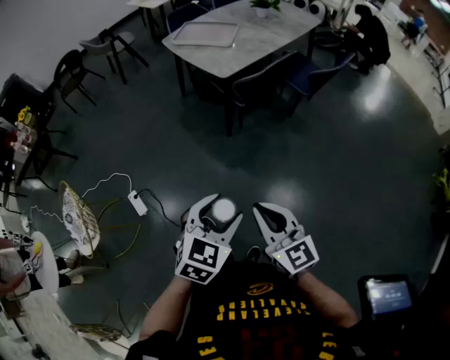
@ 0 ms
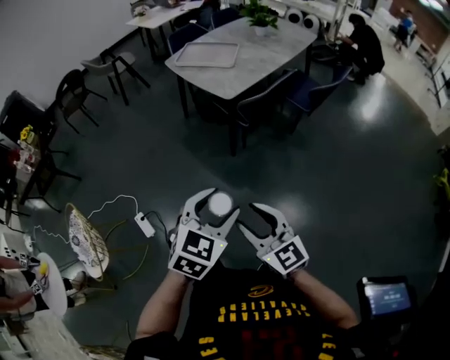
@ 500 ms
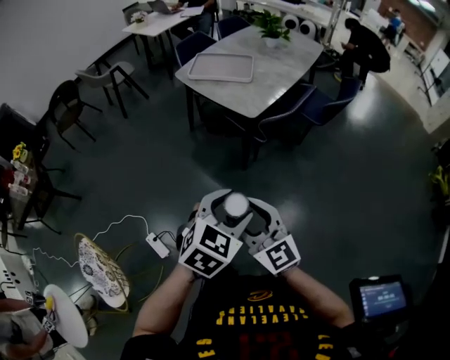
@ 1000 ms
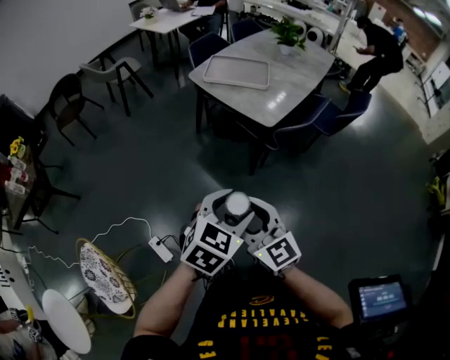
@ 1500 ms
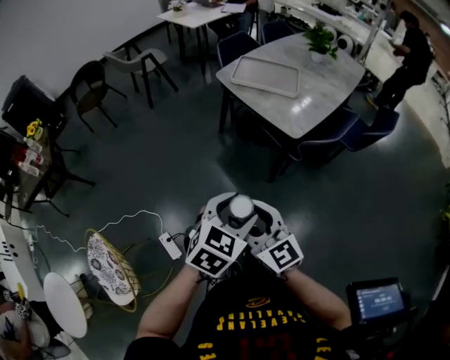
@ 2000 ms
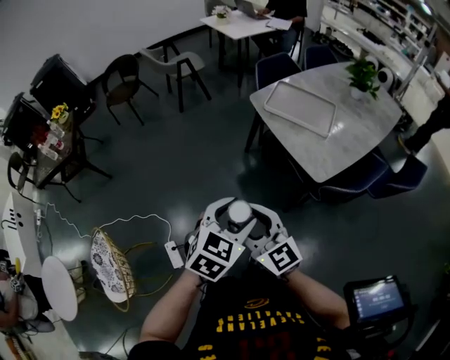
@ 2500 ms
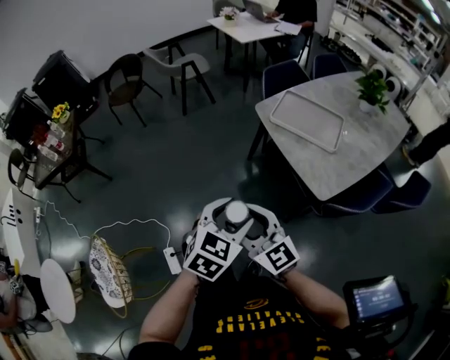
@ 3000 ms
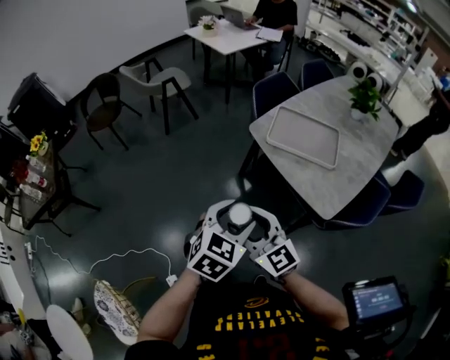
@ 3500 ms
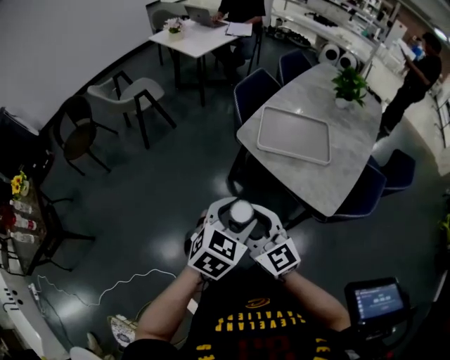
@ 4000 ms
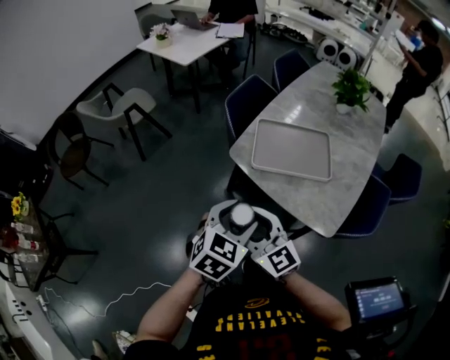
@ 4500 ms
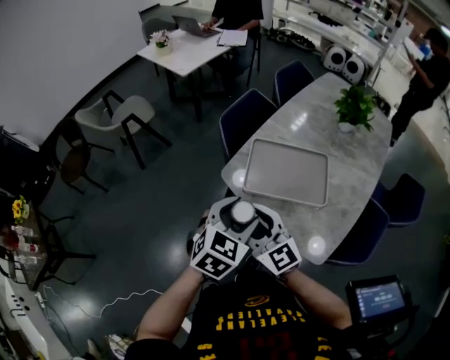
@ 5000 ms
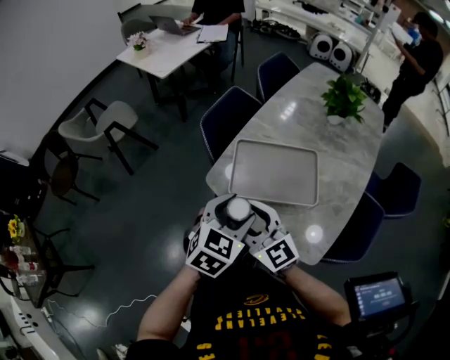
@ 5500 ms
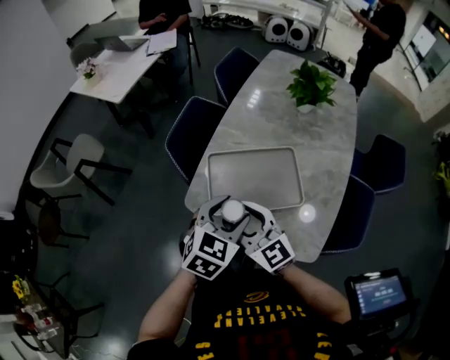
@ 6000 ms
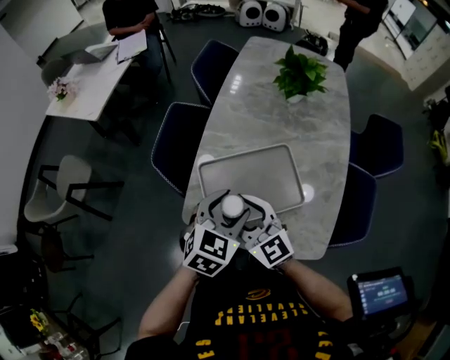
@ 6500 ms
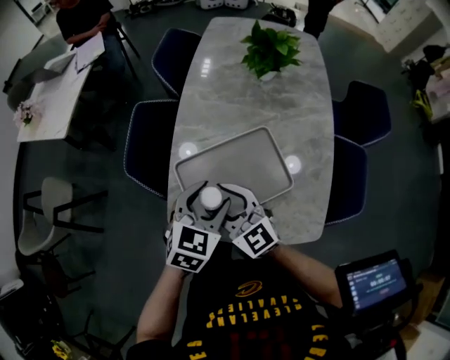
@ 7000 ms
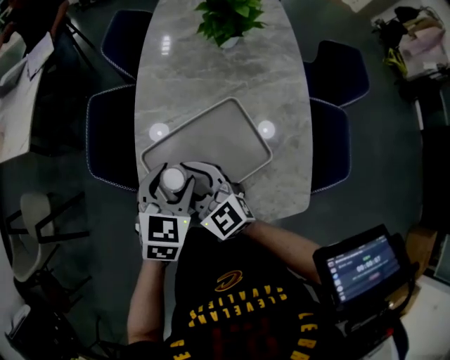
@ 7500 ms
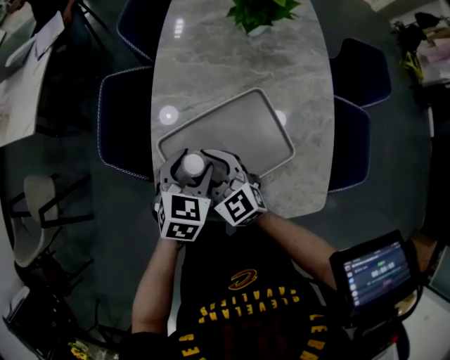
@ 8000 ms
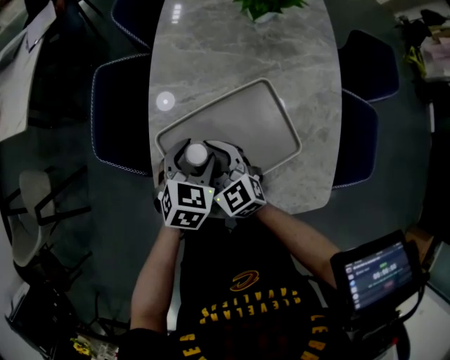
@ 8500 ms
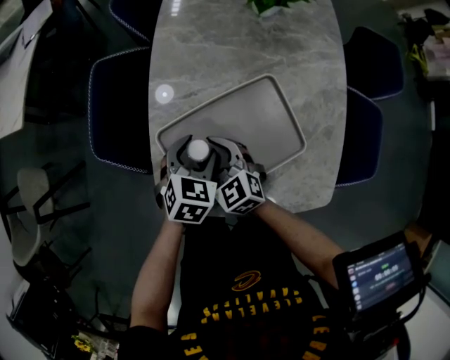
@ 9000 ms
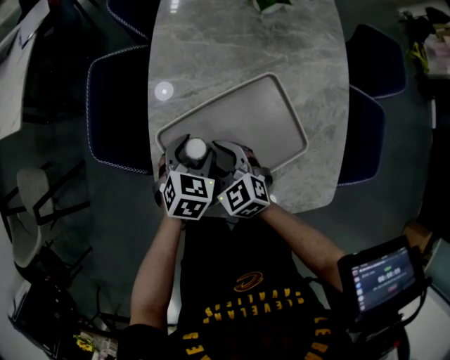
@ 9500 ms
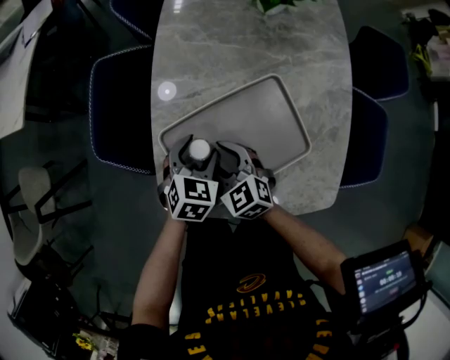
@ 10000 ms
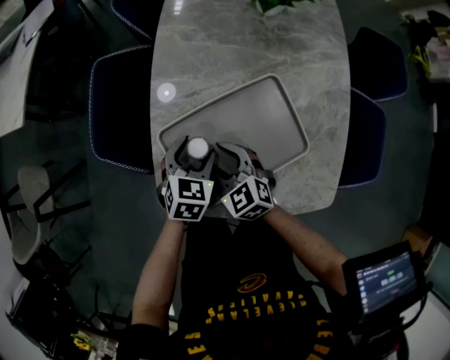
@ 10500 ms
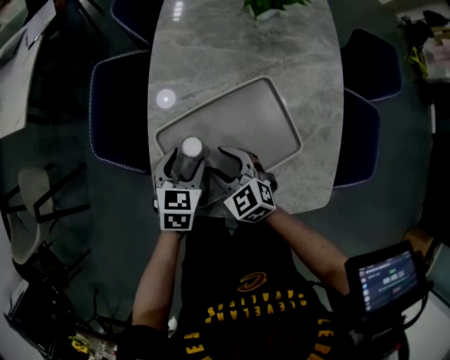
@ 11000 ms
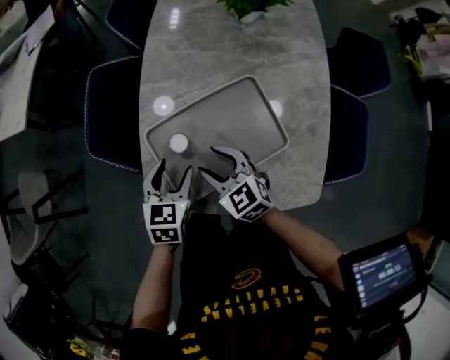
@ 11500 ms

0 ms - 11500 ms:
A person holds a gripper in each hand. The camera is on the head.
0 ms - 2000 ms: The grippers both shift to the left and forward by about 40 cm. The right gripper opens its fingers.
2000 ms - 4000 ms: Both grippers are carried forward, approximately 40 cm.
4000 ms - 6000 ms: Both grippers travel together forward and to the right, approximately 35 cm.
6000 ms - 7500 ms: Both grippers travel together forward and downward, approximately 15 cm.
7500 ms - 9500 ms: The two grippers go some 15 cm downward. The right gripper turns by approximately 20 degrees.
9500 ms - 11500 ms: The left gripper ends up some 5 cm from where it was, and swivels roughly 20 degrees; the right gripper changes place by approximately 5 cm.

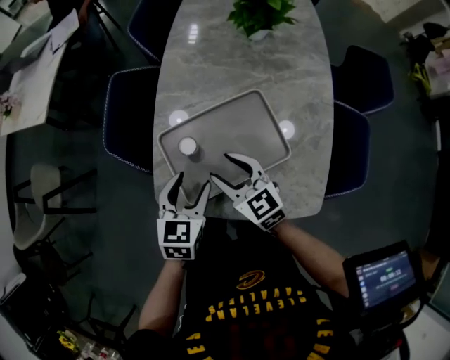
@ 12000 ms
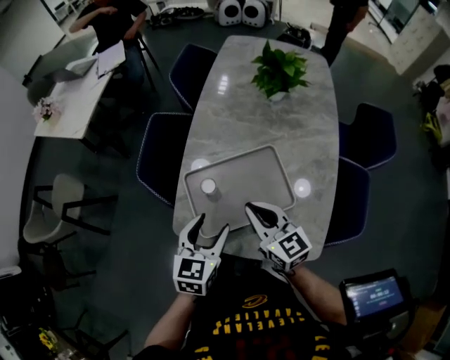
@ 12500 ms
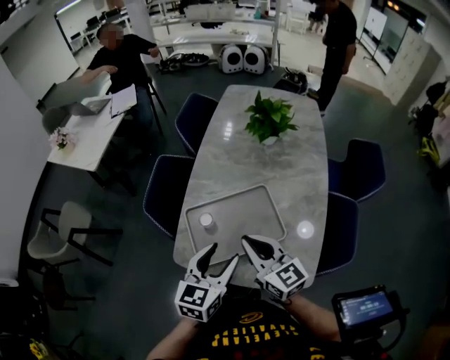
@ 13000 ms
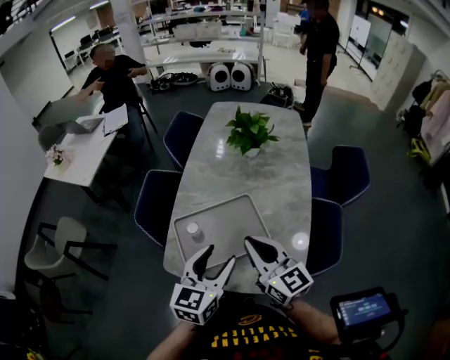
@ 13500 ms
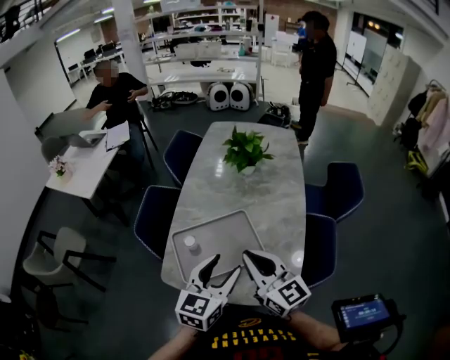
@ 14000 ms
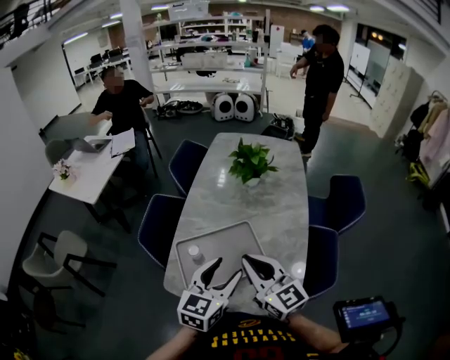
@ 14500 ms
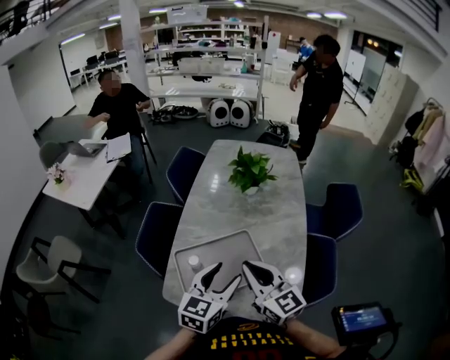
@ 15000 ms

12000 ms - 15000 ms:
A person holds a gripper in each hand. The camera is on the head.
12000 ms - 13500 ms: The grippers both shift upward and to the right by roughly 20 cm. The right gripper swivels roughly 30 degrees, and closes its fingers; the left gripper swivels about 20 degrees.
13500 ms - 15000 ms: The grippers make only small movements.

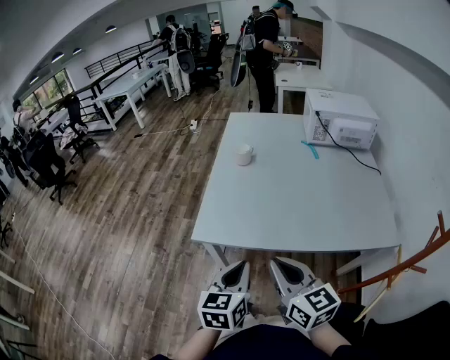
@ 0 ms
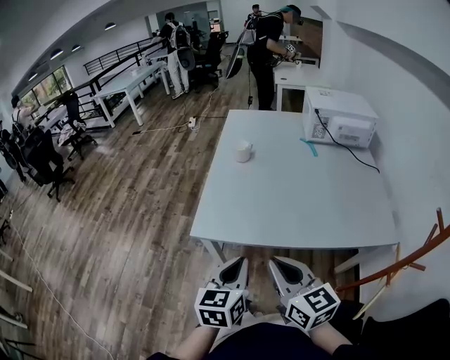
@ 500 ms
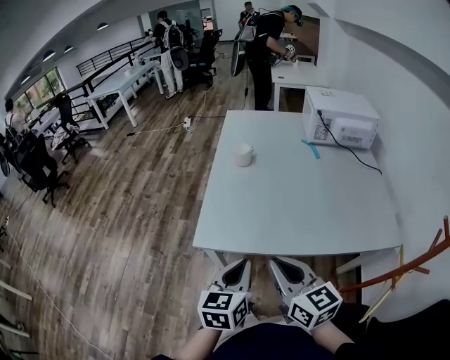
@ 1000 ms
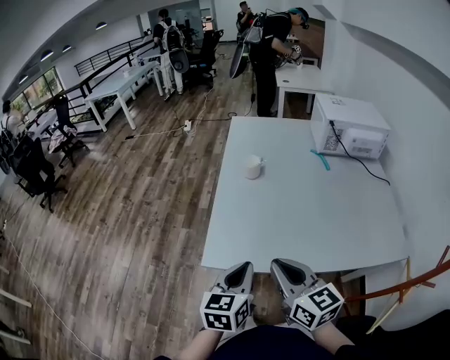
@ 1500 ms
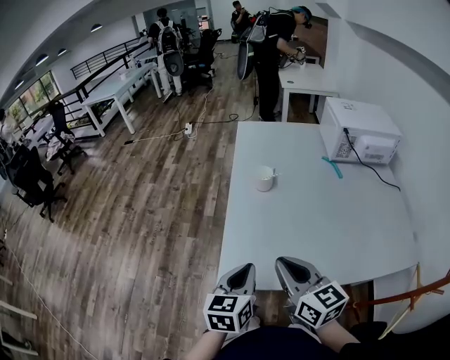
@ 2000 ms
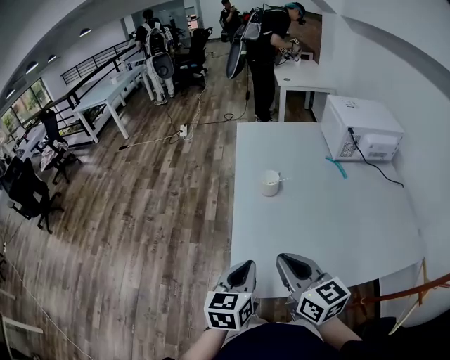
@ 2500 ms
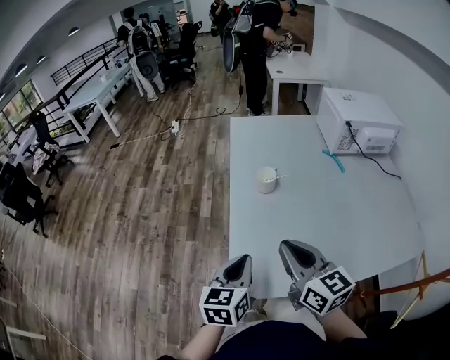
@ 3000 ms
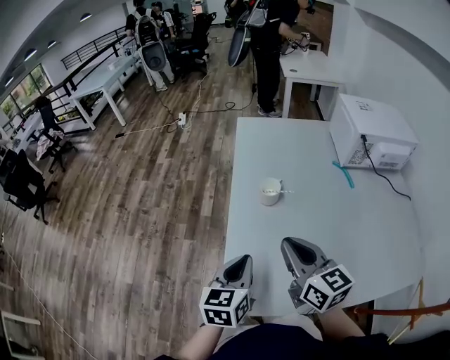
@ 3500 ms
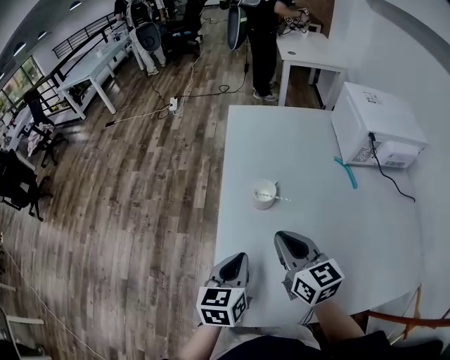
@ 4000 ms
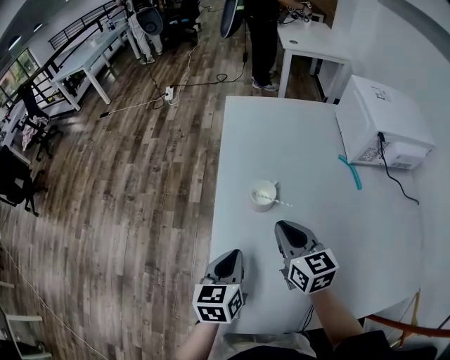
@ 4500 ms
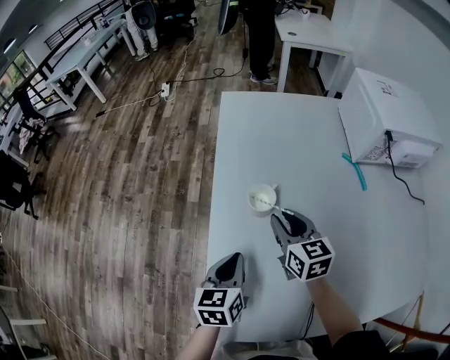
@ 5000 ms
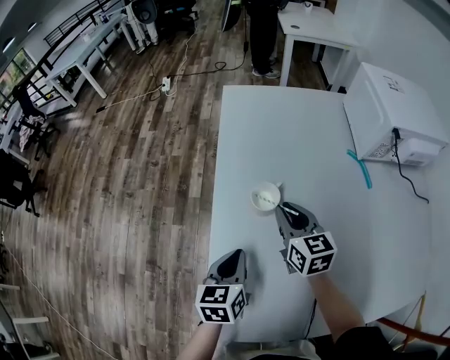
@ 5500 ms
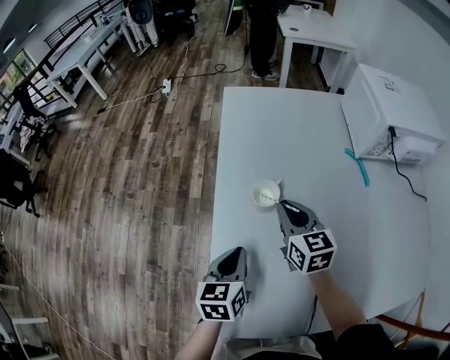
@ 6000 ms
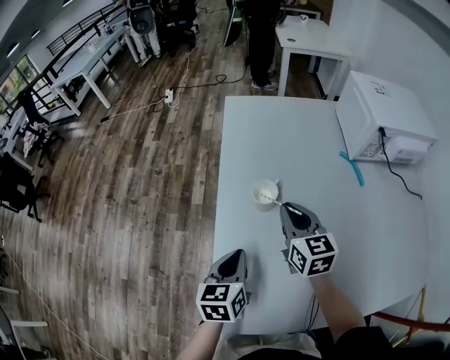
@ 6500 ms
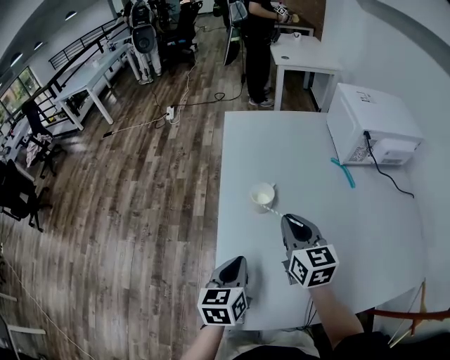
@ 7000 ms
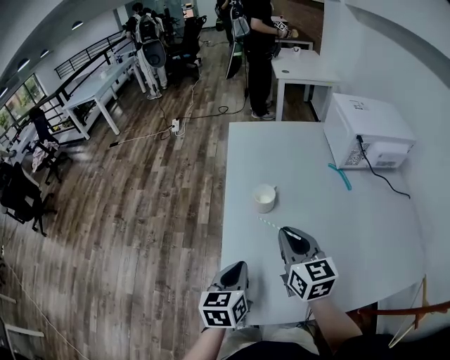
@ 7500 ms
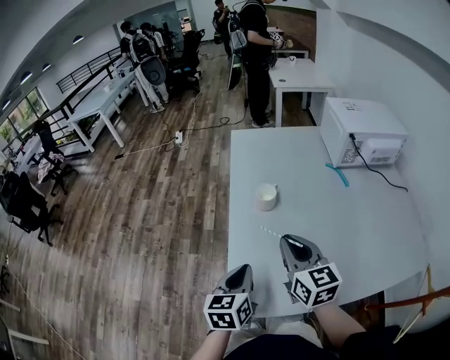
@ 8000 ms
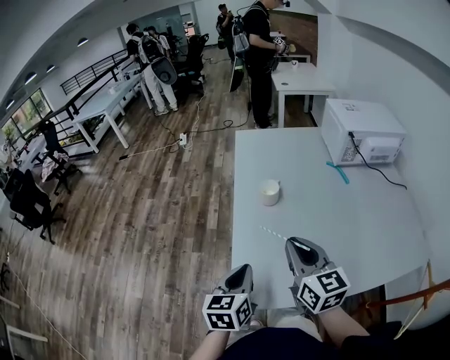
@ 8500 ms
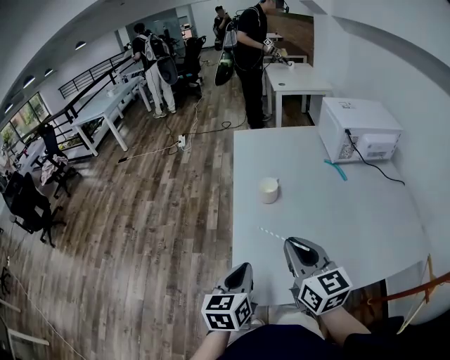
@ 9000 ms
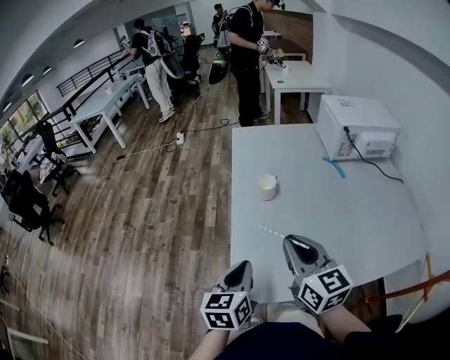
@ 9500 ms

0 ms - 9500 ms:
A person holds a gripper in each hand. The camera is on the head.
0 ms - 2000 ms: Both grippers travel together forward and to the left, about 20 cm.
2000 ms - 4000 ms: Both grippers travel together forward, some 20 cm.
4000 ms - 5500 ms: The right gripper is displaced forward and downward by some 15 cm, while the left gripper moves downward and forward, roughly 10 cm.
5500 ms - 7500 ms: The grippers both shift backward and upward by about 15 cm.
7500 ms - 9500 ms: The left gripper heads backward, covering some 10 cm. The right gripper shifts roughly 15 cm backward and upward.

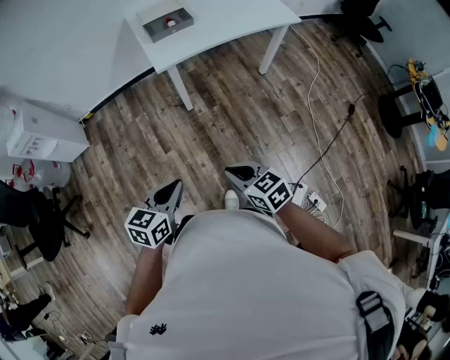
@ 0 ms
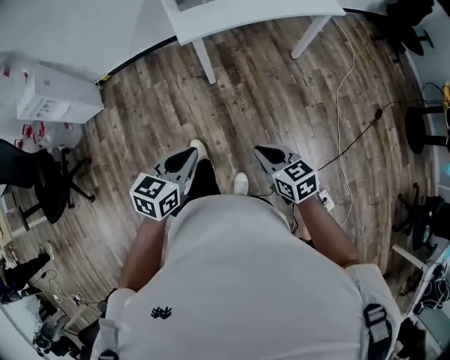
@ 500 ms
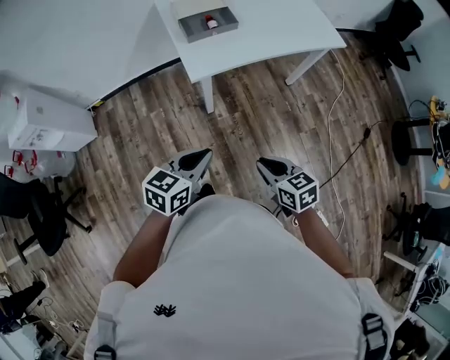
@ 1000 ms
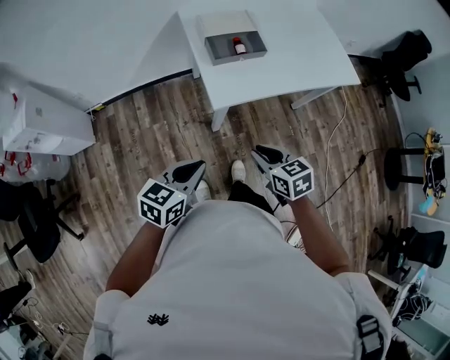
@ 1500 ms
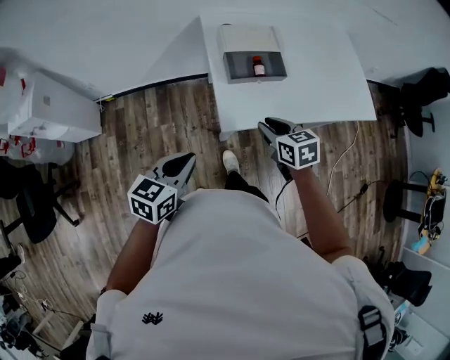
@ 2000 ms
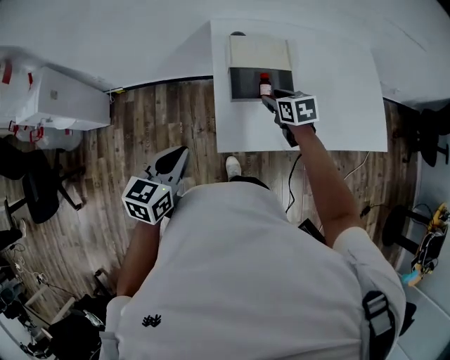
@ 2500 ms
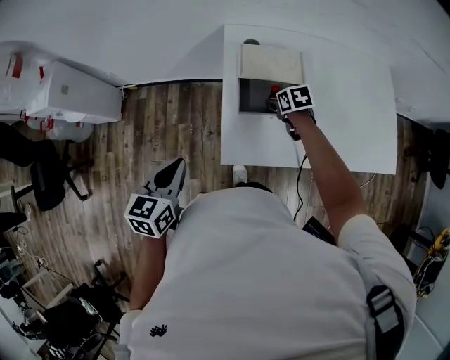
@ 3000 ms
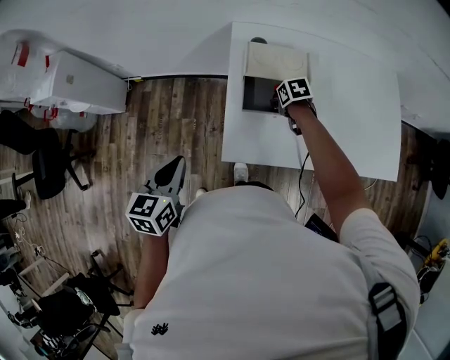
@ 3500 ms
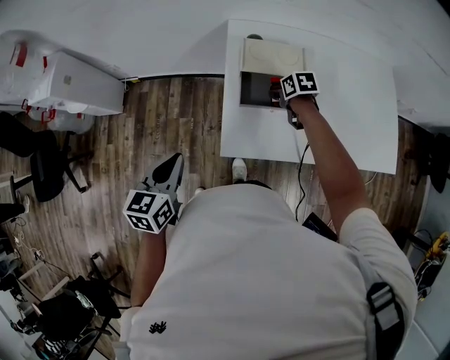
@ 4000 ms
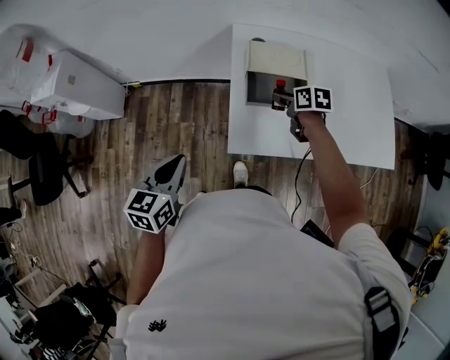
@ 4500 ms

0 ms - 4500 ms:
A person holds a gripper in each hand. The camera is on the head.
0 ms - 2000 ms: The two grippers travel together, forward, about 50 cm. The right gripper opens its fingers.
2000 ms - 4500 ms: The left gripper rotates roughly 30 degrees. The right gripper moves approximately 20 cm, turns by approximately 20 degrees, and opens its fingers.
